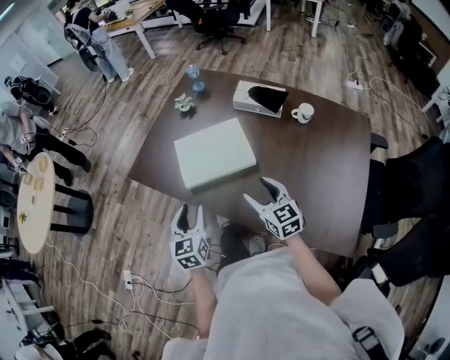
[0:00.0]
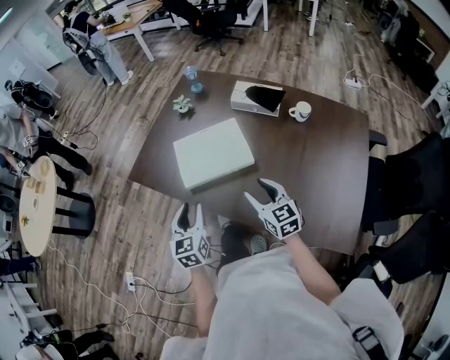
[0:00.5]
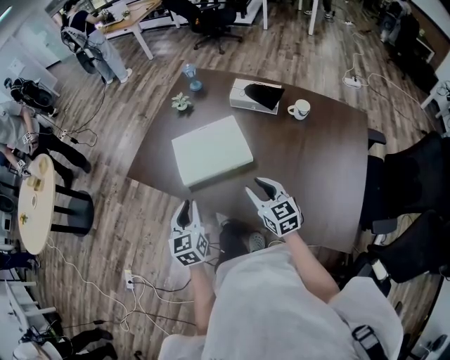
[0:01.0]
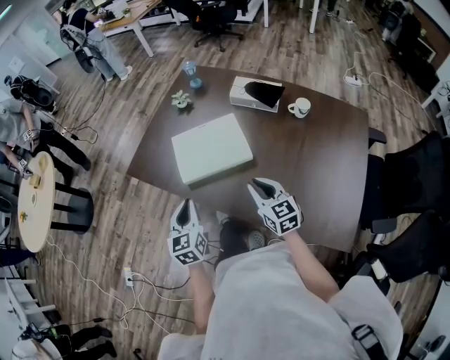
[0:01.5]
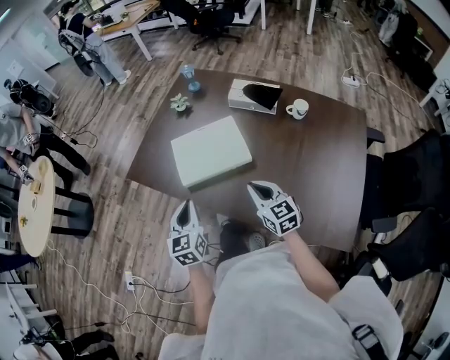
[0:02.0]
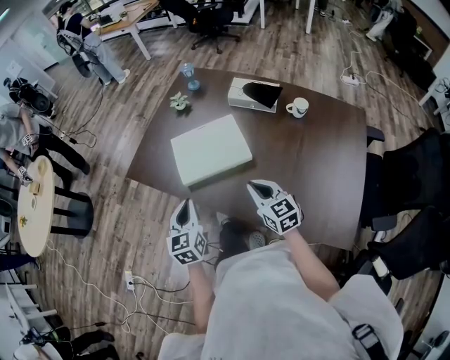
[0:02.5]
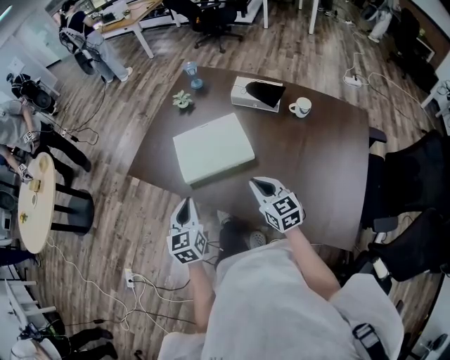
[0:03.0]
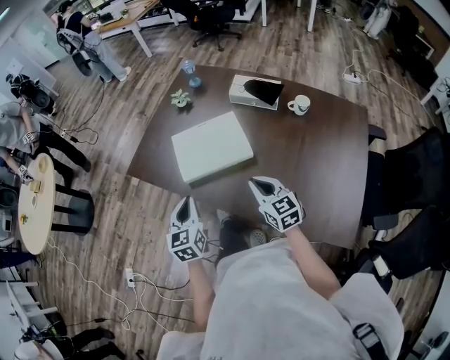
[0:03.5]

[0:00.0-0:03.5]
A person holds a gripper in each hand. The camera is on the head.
0:00.0 to 0:02.0: The left gripper closes up. Meanwhile the right gripper closes its fingers.
0:02.0 to 0:03.5: Both grippers stay about where they are.

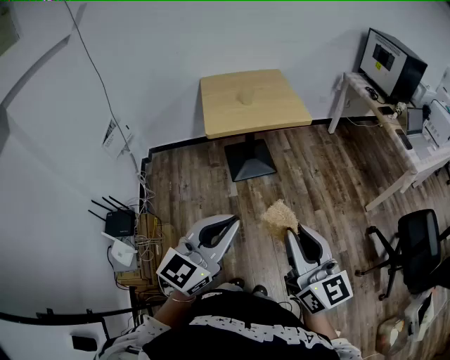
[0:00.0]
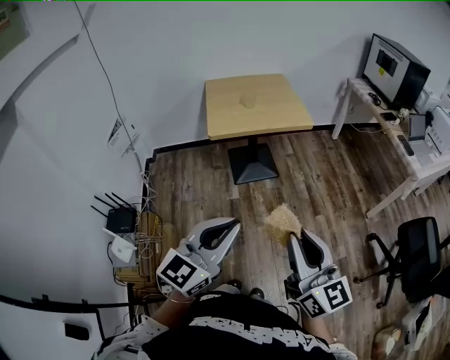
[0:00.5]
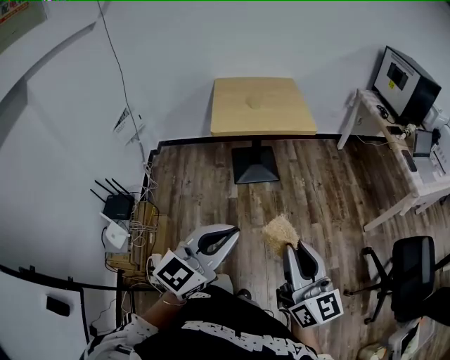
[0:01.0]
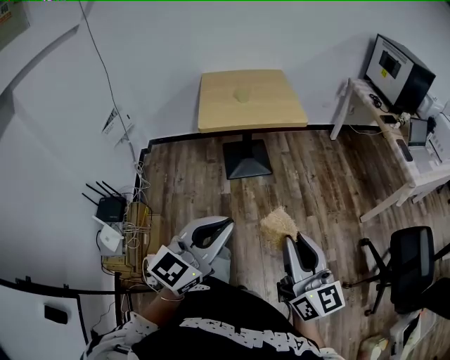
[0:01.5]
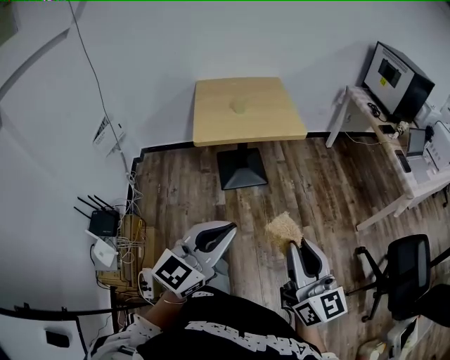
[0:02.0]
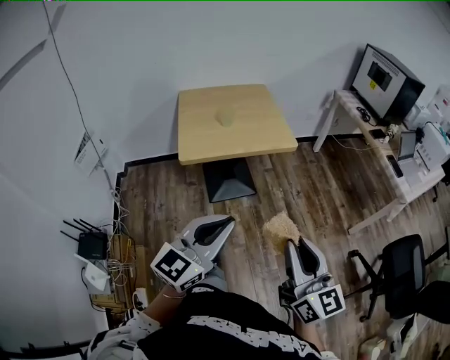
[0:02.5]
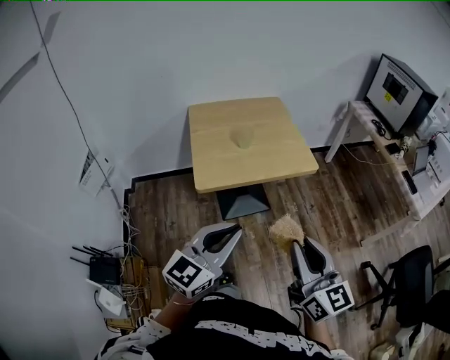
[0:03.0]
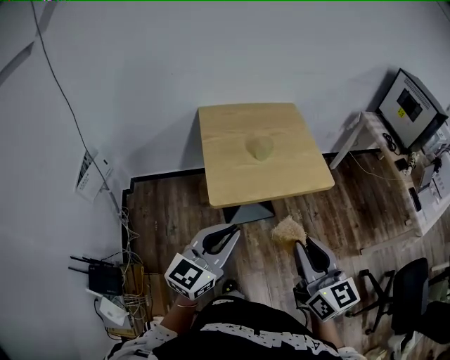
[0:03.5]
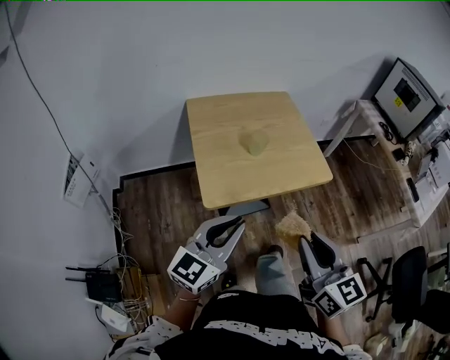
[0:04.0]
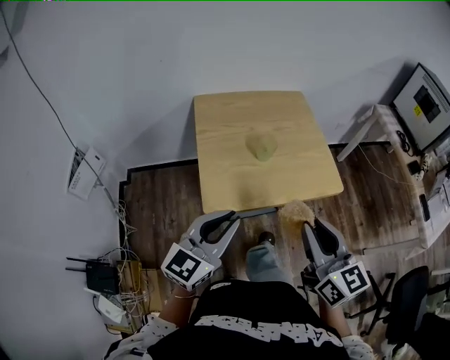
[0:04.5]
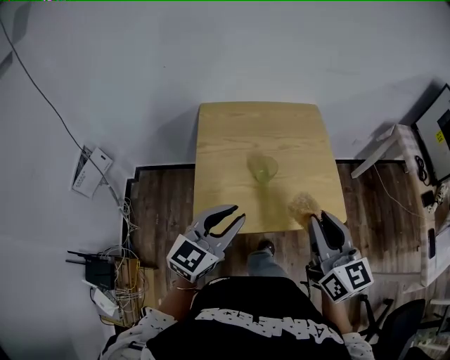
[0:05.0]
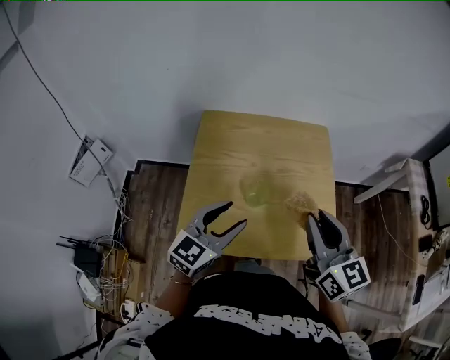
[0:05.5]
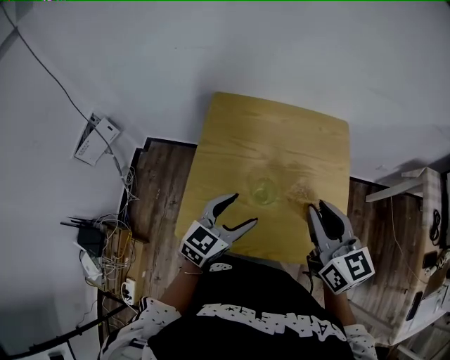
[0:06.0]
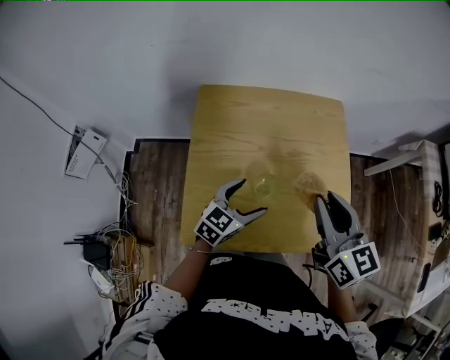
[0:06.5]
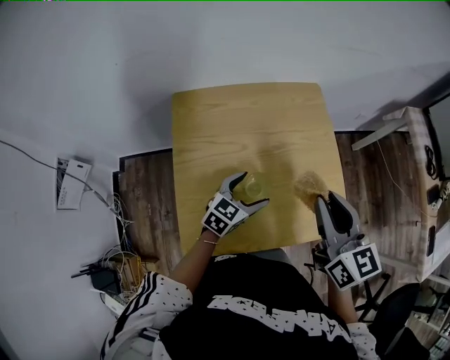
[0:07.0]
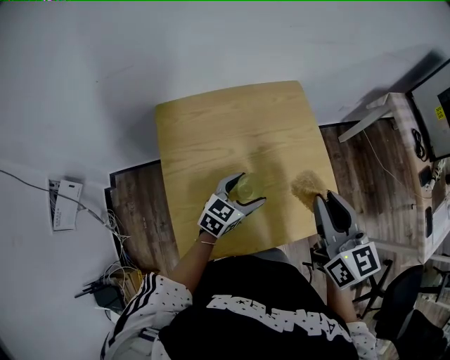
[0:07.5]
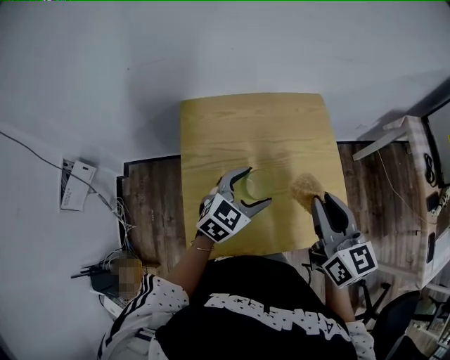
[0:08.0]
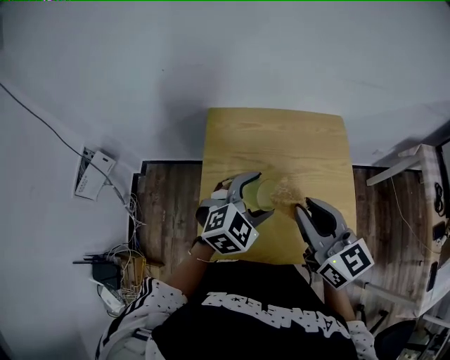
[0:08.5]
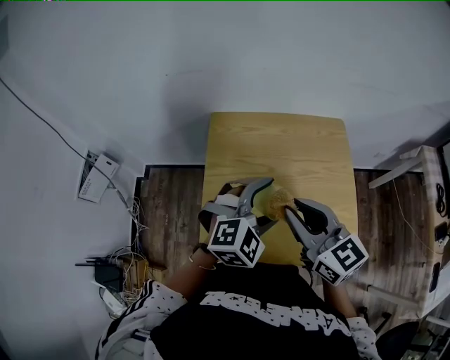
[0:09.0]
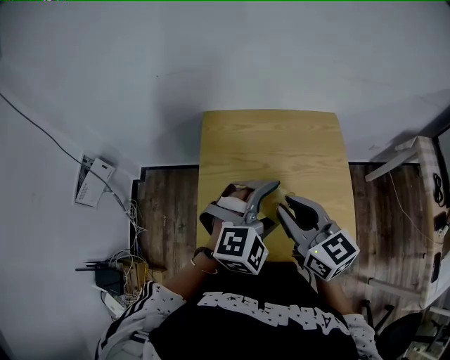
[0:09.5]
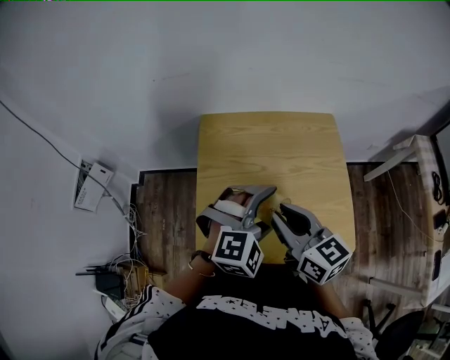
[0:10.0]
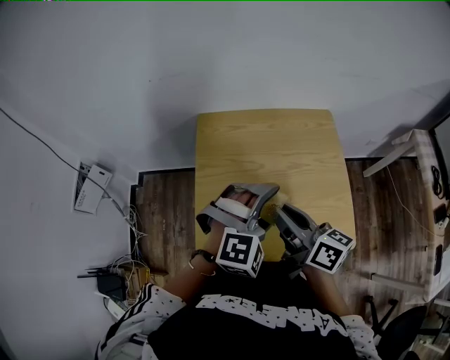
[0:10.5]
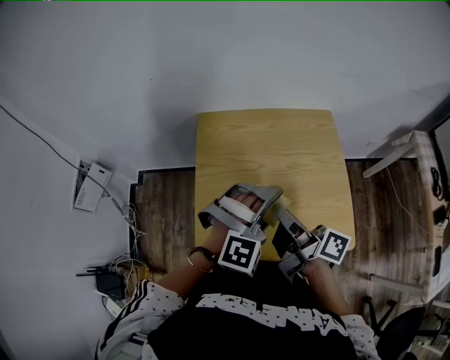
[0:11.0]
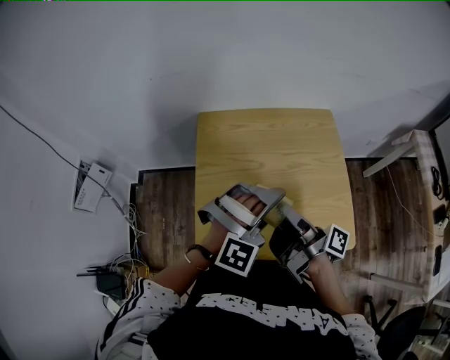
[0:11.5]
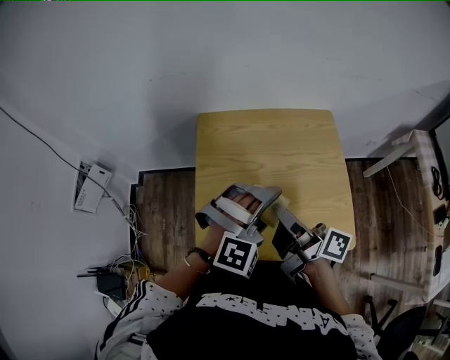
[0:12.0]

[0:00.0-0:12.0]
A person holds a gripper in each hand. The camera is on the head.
0:00.0 to 0:02.0: Both grippers move to the right and forward, roughly 10 cm.
0:02.0 to 0:04.0: Both grippers move forward and to the left, roughly 40 cm.
0:04.0 to 0:06.0: The right gripper goes some 40 cm forward, and rotates approximately 30 degrees. Meanwhile the left gripper shifts roughly 30 cm forward and downward, swivels roughly 30 degrees, and opens up.
0:06.0 to 0:08.0: The left gripper reaches about 10 cm downward, then returns, and swivels approximately 20 degrees.
0:08.0 to 0:10.0: The left gripper moves upward, some 10 cm, and rolls clockwise, seen from behind, by about 40 degrees, while the right gripper shifts about 10 cm to the left, and turns by some 20 degrees.
0:10.0 to 0:12.0: The right gripper twists roughly 50 degrees clockwise, seen from behind.

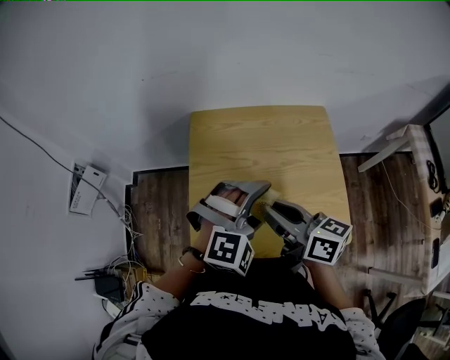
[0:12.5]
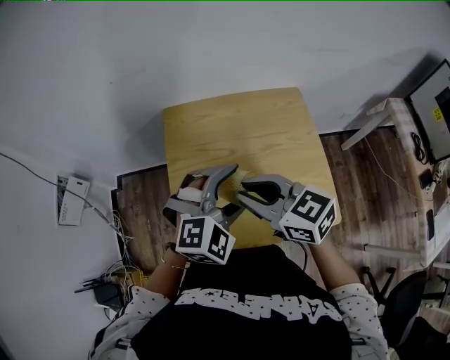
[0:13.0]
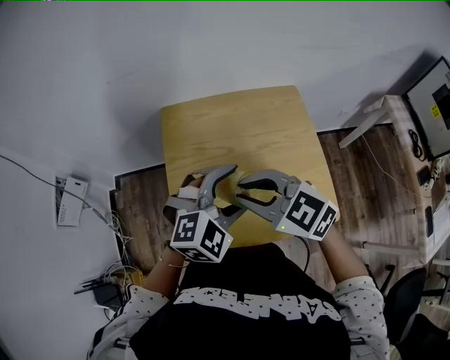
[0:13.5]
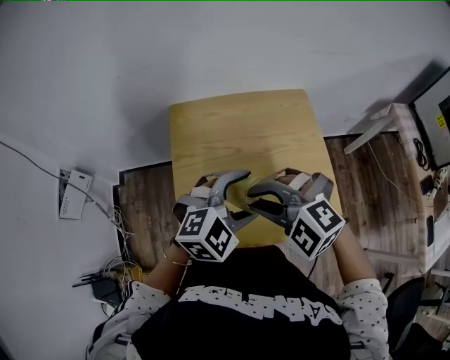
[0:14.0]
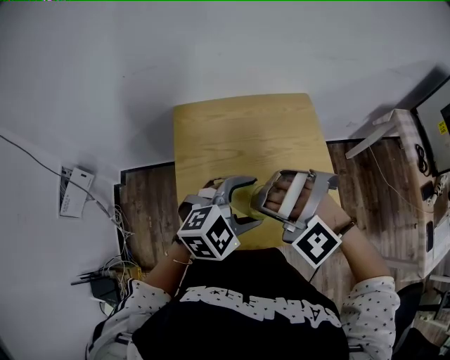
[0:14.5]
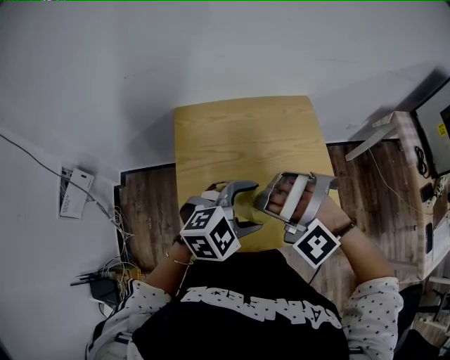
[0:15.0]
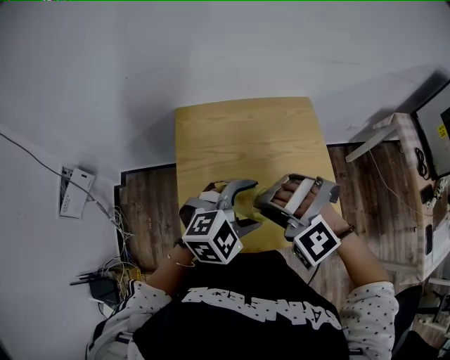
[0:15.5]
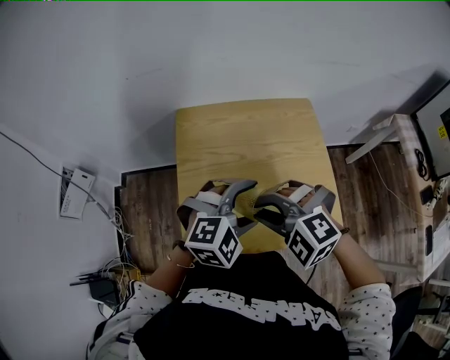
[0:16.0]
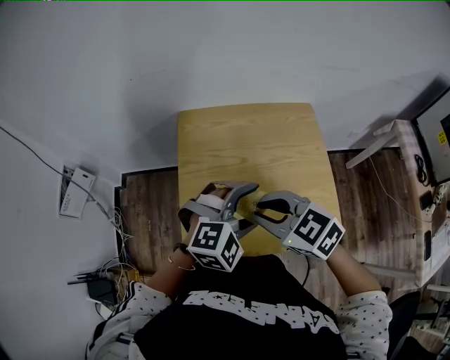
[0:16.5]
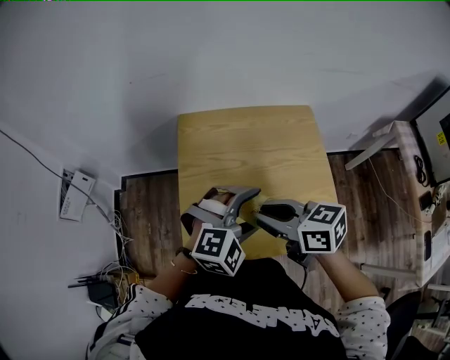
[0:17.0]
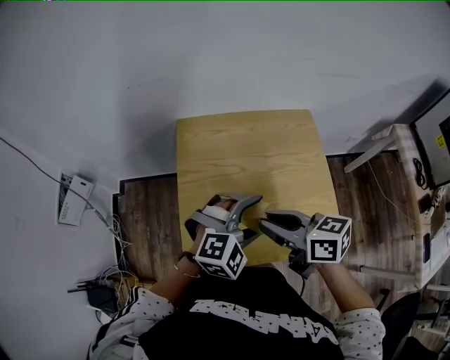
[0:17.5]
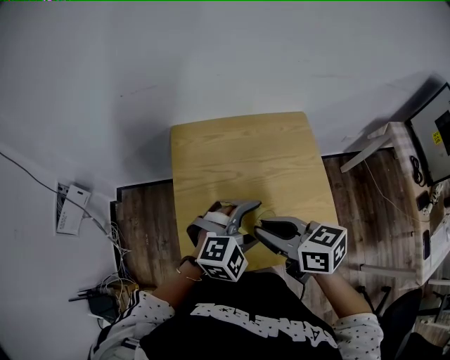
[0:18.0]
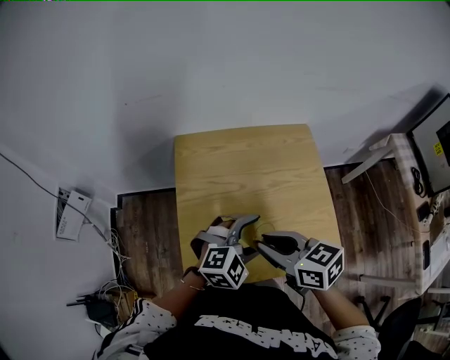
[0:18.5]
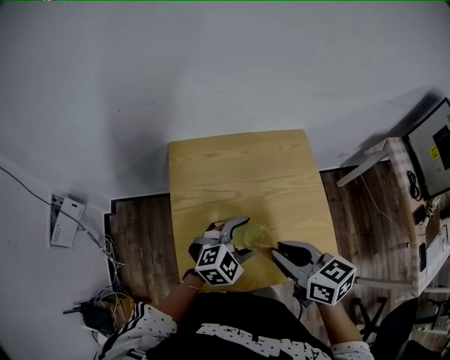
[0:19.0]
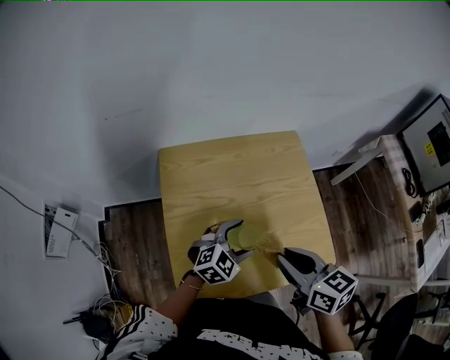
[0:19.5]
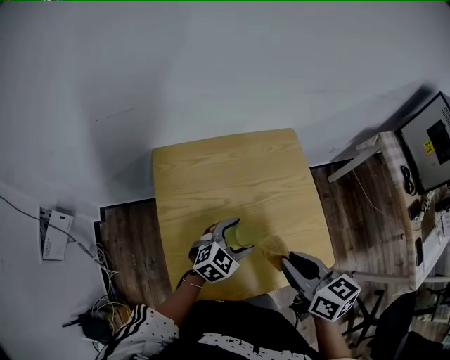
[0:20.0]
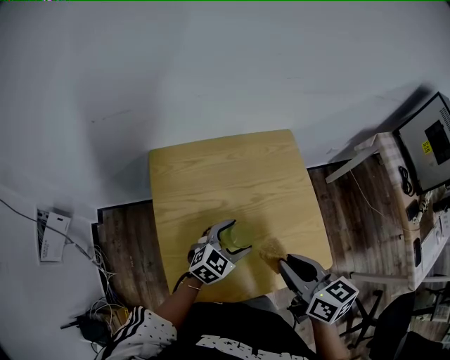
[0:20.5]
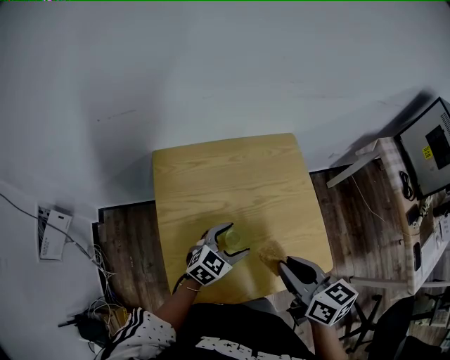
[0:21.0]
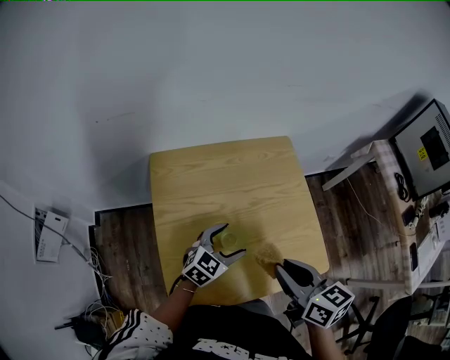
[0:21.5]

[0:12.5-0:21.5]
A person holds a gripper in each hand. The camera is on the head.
0:12.5 to 0:14.5: The right gripper rolls counterclockwise, seen from behind, by roughly 130 degrees, while the left gripper turns by approximately 30 degrees.
0:14.5 to 0:17.0: The right gripper twists some 120 degrees clockwise, seen from behind.
0:17.0 to 0:19.5: The left gripper shifts about 15 cm downward and forward, and changes its angle by about 30 degrees. The right gripper moves to the right, about 10 cm, and changes its angle by roughly 30 degrees.
0:19.5 to 0:21.5: The grippers stay close to where they were, moving slightly.

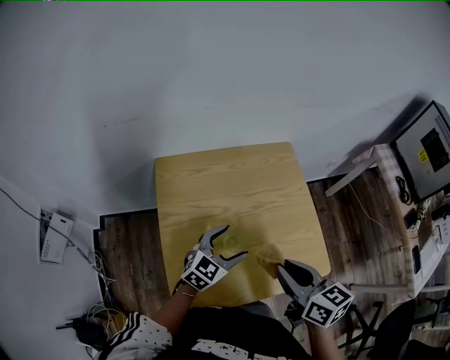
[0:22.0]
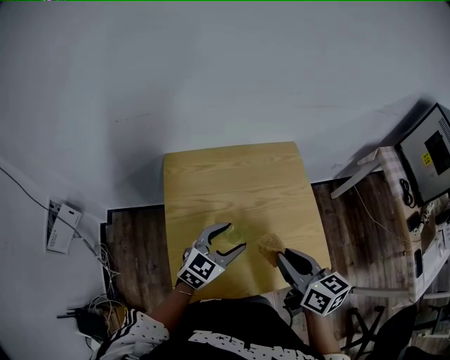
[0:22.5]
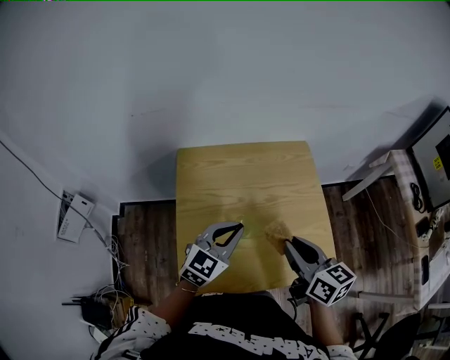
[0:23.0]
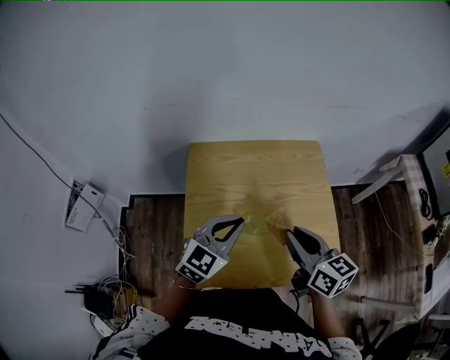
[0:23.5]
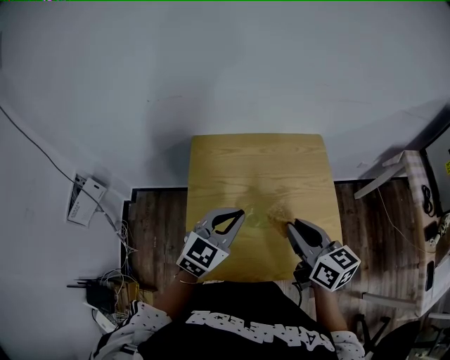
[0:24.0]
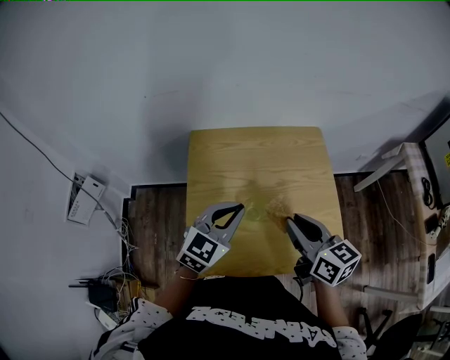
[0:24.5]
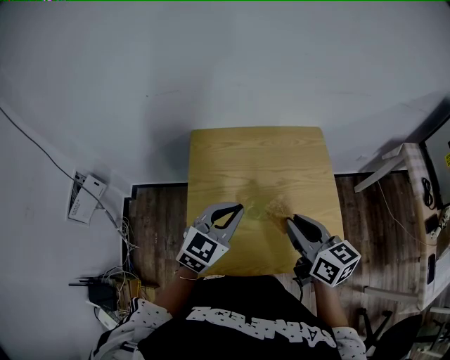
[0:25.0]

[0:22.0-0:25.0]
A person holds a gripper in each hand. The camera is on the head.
0:22.0 to 0:23.5: The left gripper heads upward, covering roughly 10 cm, and closes its fingers.
0:23.5 to 0:25.0: There are only small adjustments of the grippers.
